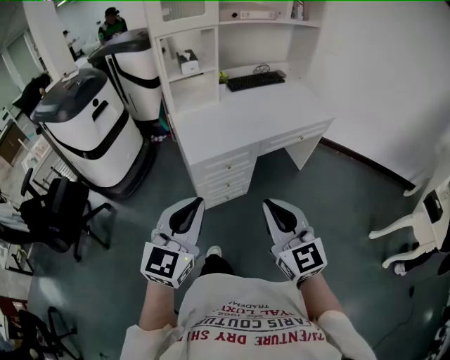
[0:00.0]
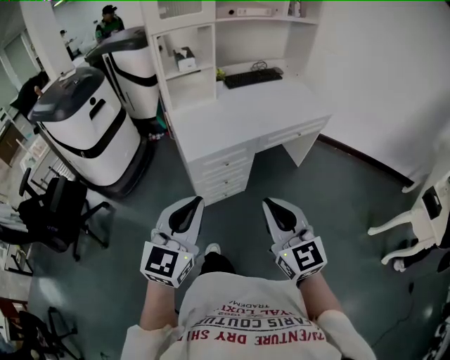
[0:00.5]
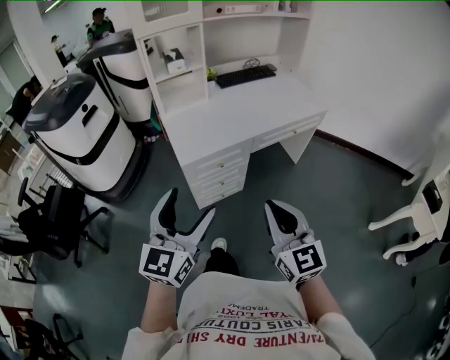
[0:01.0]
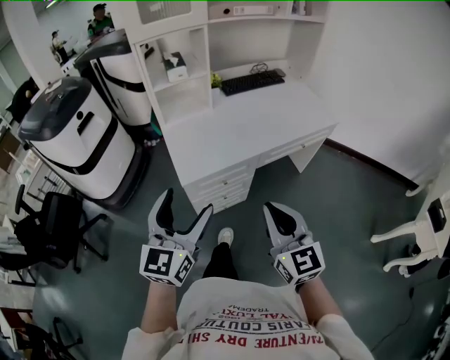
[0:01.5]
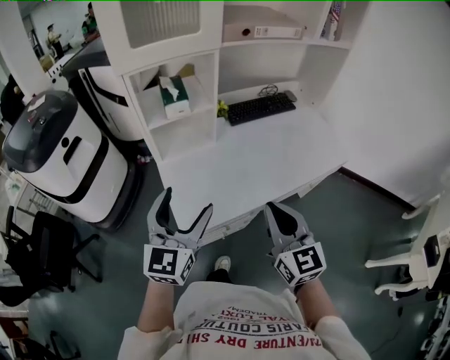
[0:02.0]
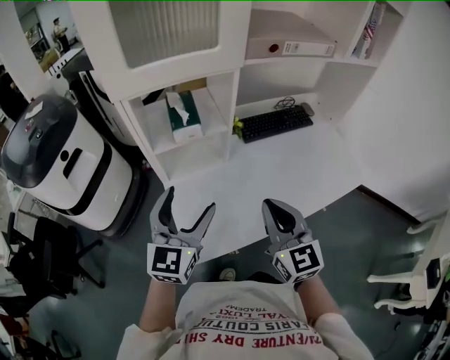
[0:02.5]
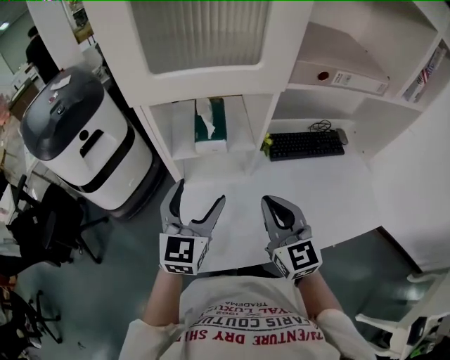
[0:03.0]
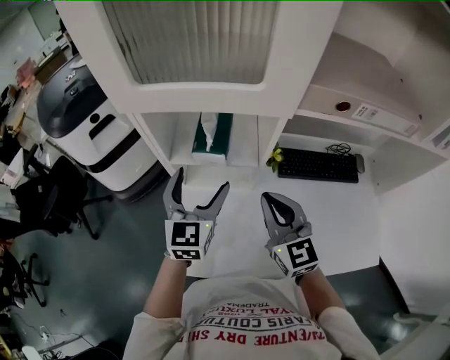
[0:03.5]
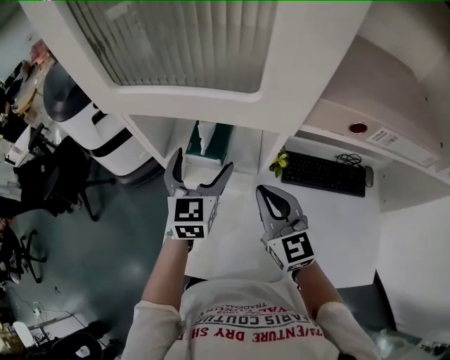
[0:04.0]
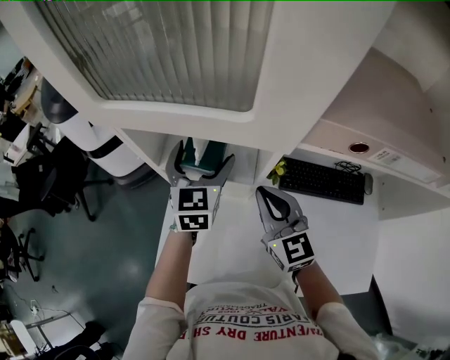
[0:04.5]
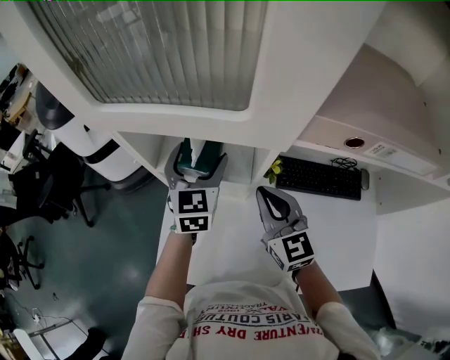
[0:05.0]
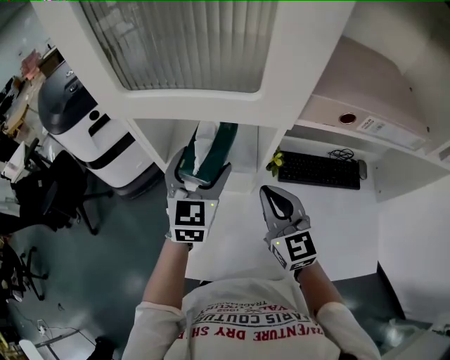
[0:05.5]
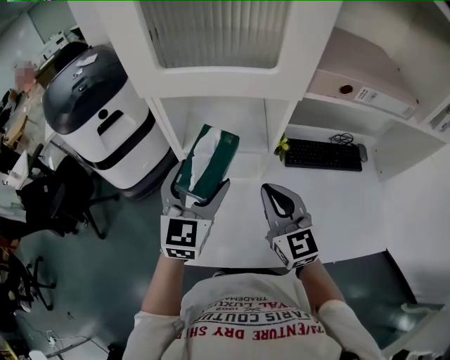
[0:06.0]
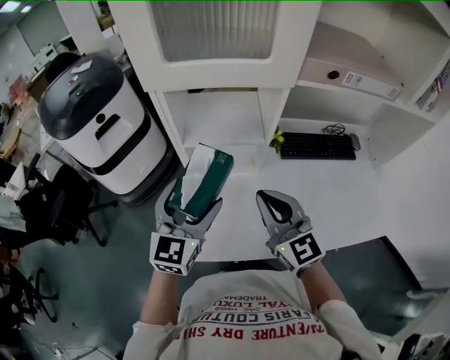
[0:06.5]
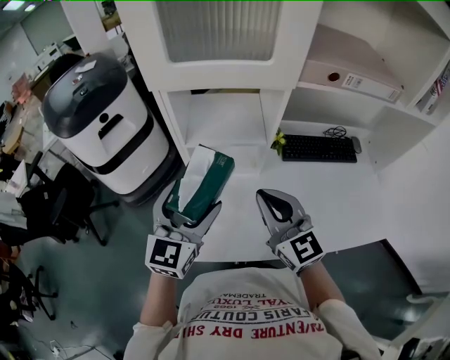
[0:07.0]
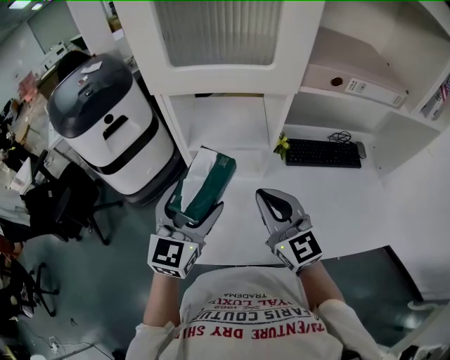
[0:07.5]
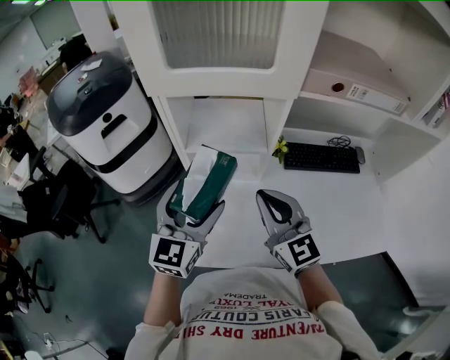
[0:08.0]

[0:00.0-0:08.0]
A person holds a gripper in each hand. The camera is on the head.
0:00.0 to 0:02.0: The two grippers go roughly 35 cm forward. The left gripper opens.
0:02.0 to 0:04.0: The left gripper moves approximately 35 cm, and rotates roughly 40 degrees; the right gripper moves approximately 40 cm, and turns by roughly 40 degrees.
0:04.0 to 0:06.0: The right gripper is displaced backward and to the left by roughly 10 cm. The left gripper moves backward, to the left and upward, some 15 cm.
0:06.0 to 0:08.0: The left gripper is displaced backward by roughly 5 cm.

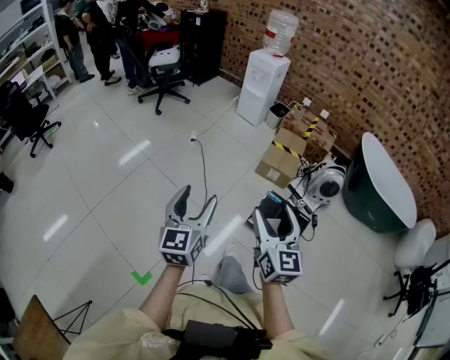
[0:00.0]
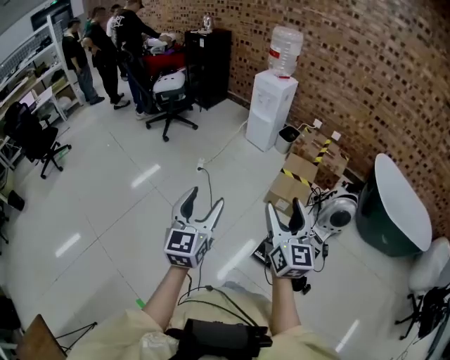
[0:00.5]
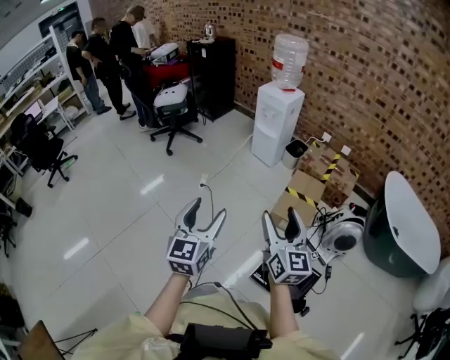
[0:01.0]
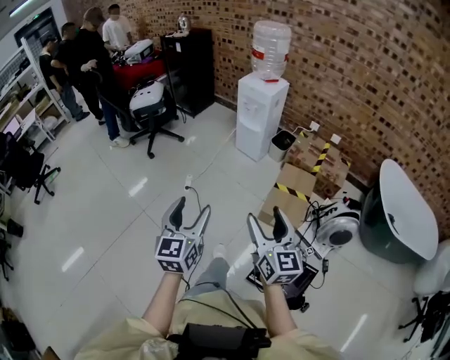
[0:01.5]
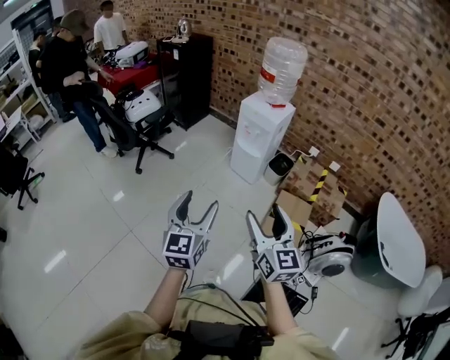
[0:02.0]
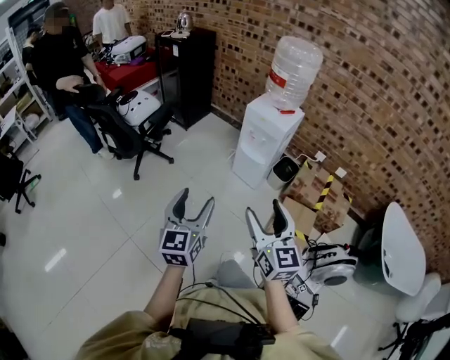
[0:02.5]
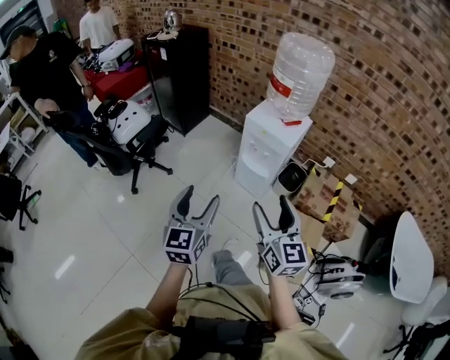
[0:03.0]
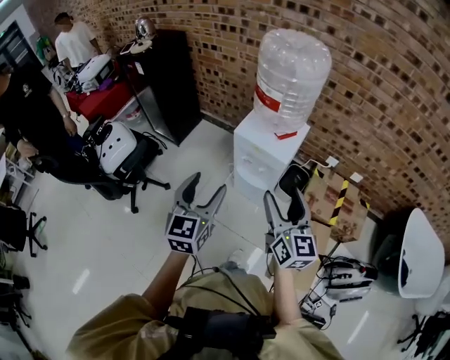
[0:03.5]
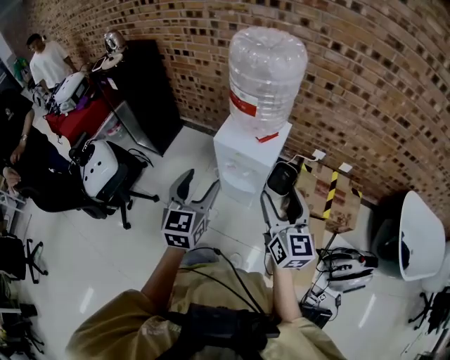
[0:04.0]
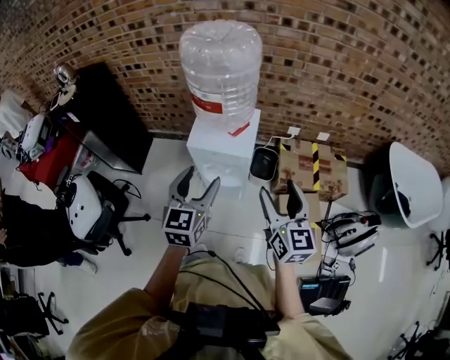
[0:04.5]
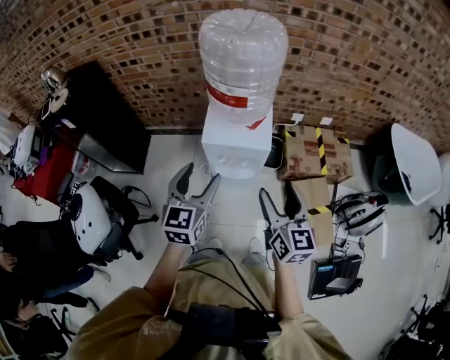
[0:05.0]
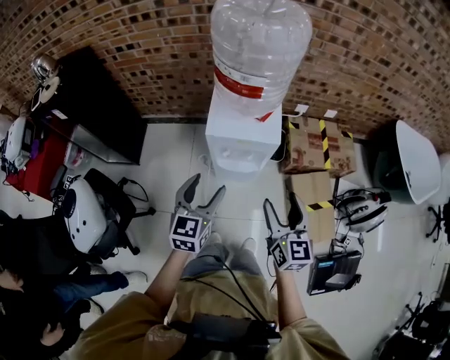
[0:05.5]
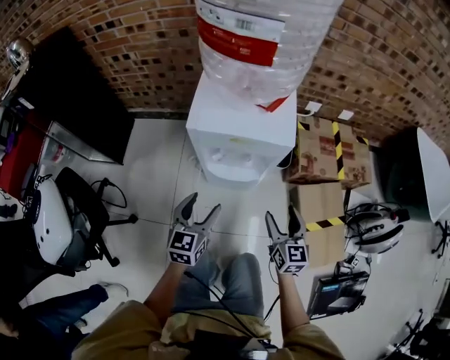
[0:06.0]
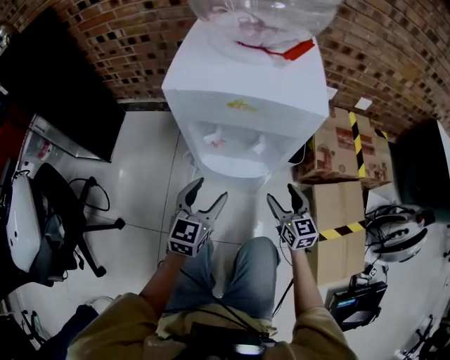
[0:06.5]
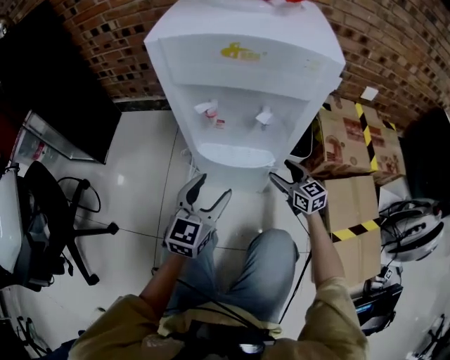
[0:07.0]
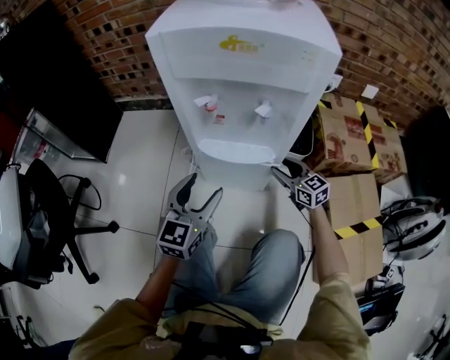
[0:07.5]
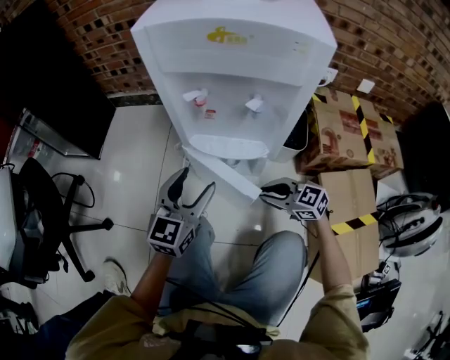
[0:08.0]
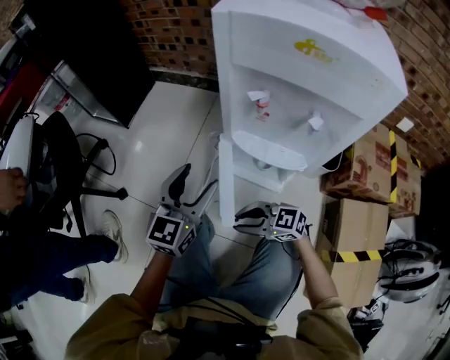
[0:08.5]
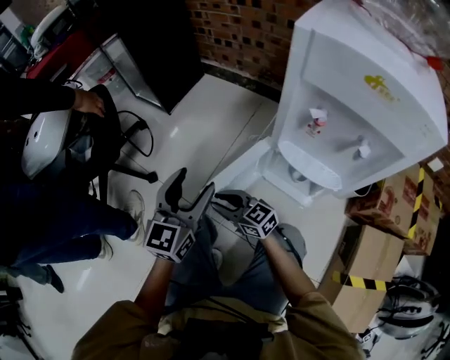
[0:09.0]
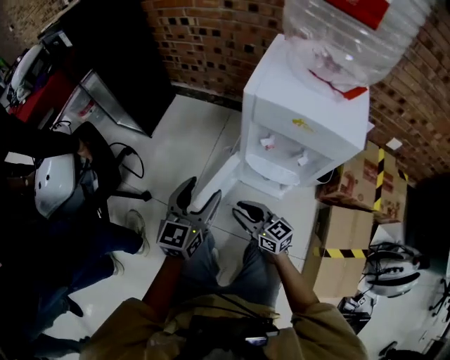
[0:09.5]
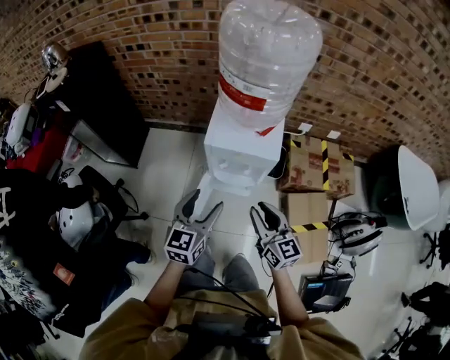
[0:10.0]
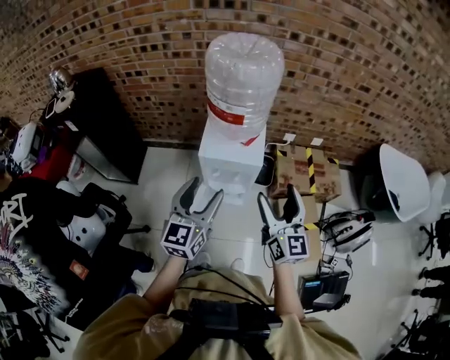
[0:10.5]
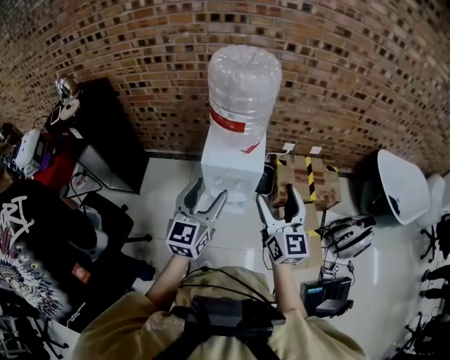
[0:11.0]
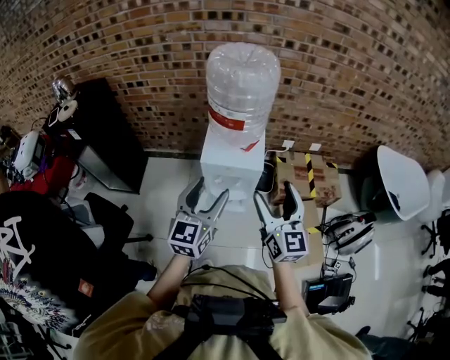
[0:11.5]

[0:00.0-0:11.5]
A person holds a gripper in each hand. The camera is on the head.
0:00.0 to 0:02.0: The pair of grippers is taken forward, approximately 70 cm.
0:02.0 to 0:04.0: The two grippers travel together, forward, roughly 60 cm.
0:04.0 to 0:06.0: Both grippers travel together downward, roughly 40 cm. The right gripper changes its angle by some 20 degrees. Meanwhile the left gripper turns by some 30 degrees.
0:06.0 to 0:07.5: The right gripper travels downward and forward by roughly 35 cm, and swivels some 30 degrees. Meanwhile the left gripper heads downward, covering roughly 20 cm.
0:07.5 to 0:09.5: The right gripper changes place by some 35 cm, and rotates approximately 30 degrees; the left gripper shifts roughly 15 cm upward.
0:09.5 to 0:11.5: The two grippers go approximately 50 cm upward. The right gripper swivels some 60 degrees, and opens its fingers, while the left gripper turns by about 20 degrees.

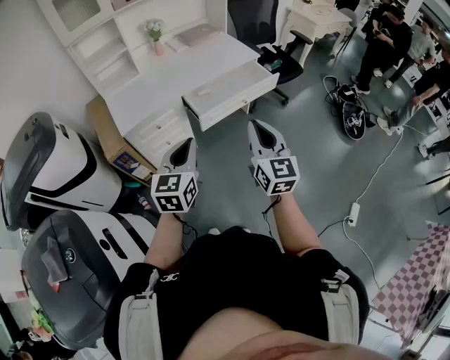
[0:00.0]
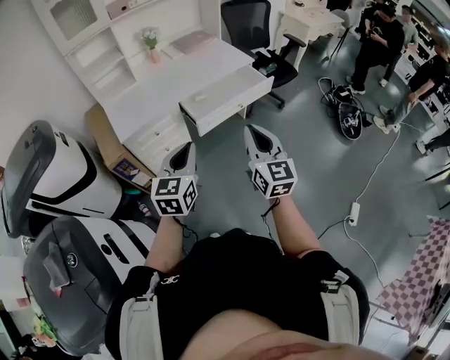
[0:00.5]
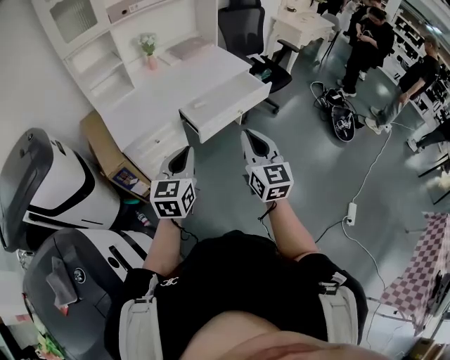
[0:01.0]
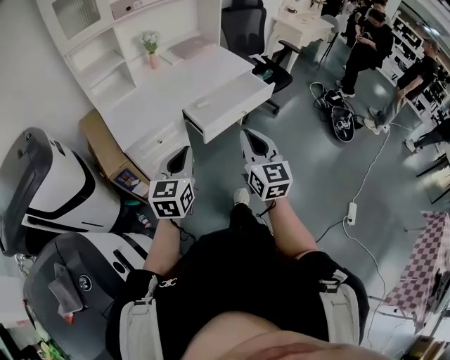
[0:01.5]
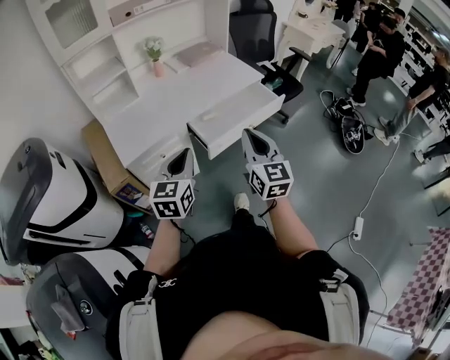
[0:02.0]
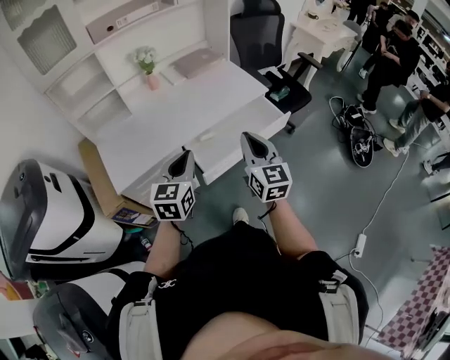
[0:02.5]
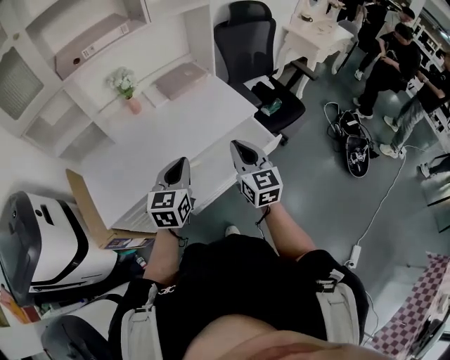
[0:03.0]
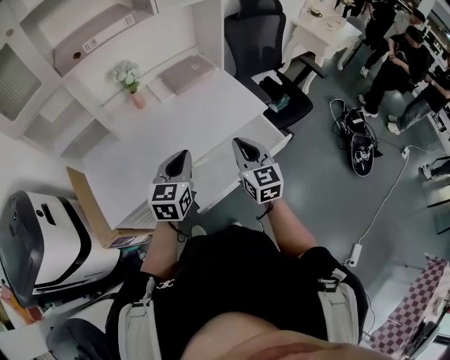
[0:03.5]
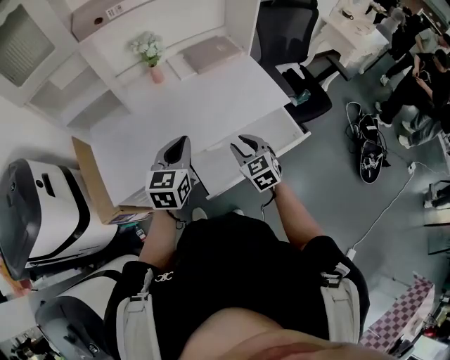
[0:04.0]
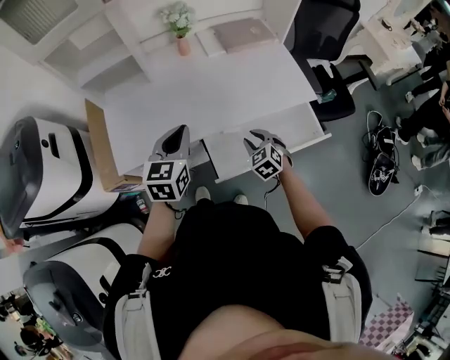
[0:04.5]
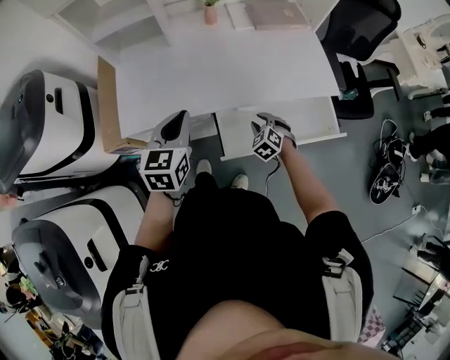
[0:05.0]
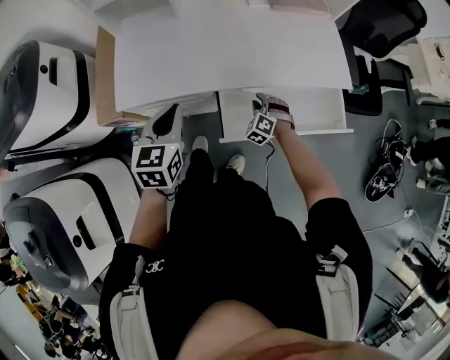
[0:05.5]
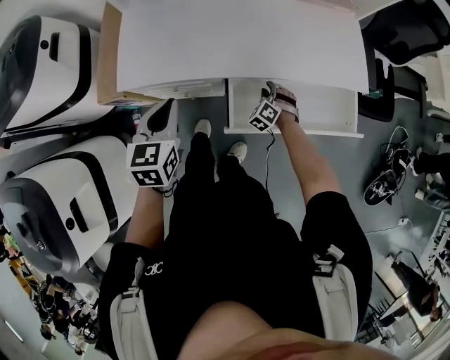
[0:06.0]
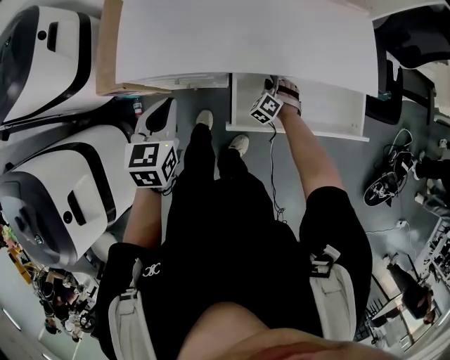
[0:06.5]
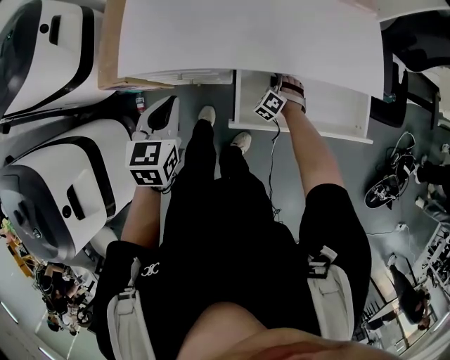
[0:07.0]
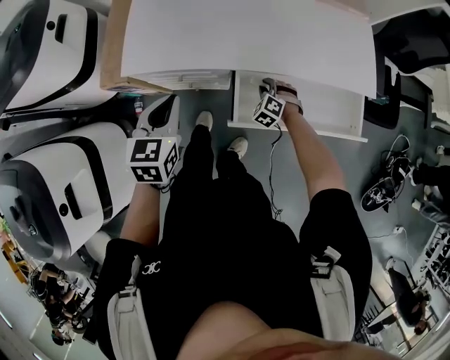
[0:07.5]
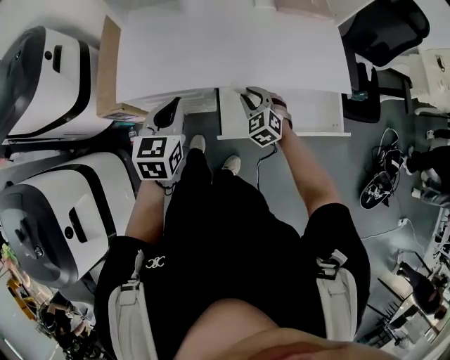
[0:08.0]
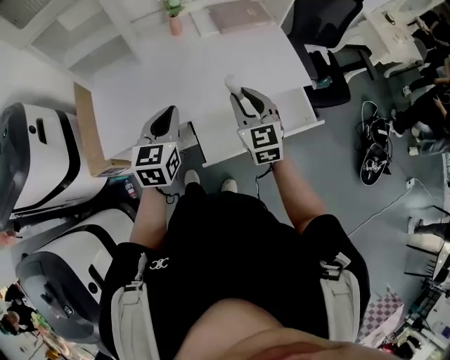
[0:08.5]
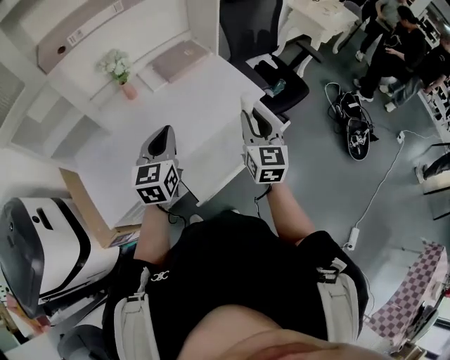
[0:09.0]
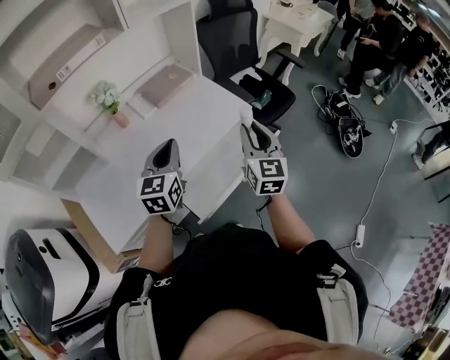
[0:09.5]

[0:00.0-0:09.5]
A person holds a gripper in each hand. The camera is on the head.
0:00.0 to 0:02.0: The two grippers go about 15 cm forward and to the left.
0:02.0 to 0:04.0: Both grippers move forward, roughly 35 cm. The right gripper tips its fingers downward by some 30 degrees, and opens its fingers.
0:04.0 to 0:05.5: The right gripper is displaced downward by approximately 25 cm, and rolls counterclockwise, seen from behind, by roughly 50 degrees; the left gripper goes some 15 cm to the left, downward and backward, and swivels approximately 30 degrees.
0:05.5 to 0:07.5: The right gripper heads downward, covering about 5 cm. Meanwhile the left gripper shifts by roughly 5 cm.
0:07.5 to 0:09.5: The left gripper shifts by some 30 cm, and swivels roughly 50 degrees; the right gripper is displaced upward by about 40 cm, and tilts its fingers some 50 degrees upward.
